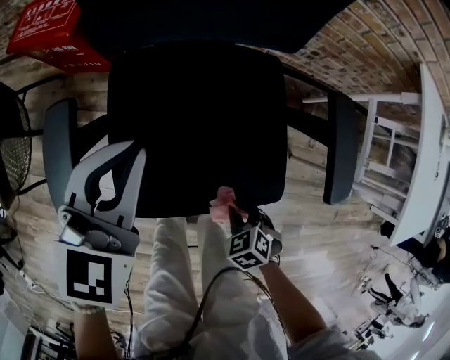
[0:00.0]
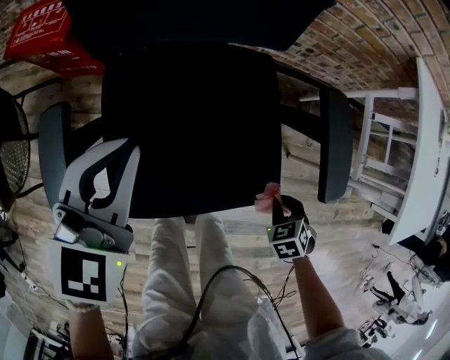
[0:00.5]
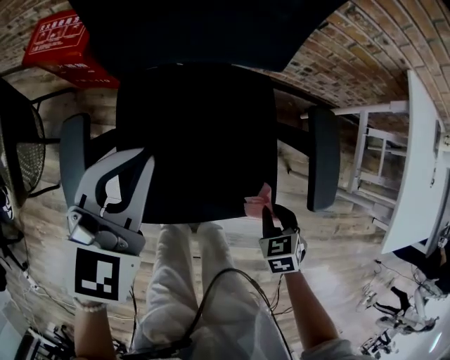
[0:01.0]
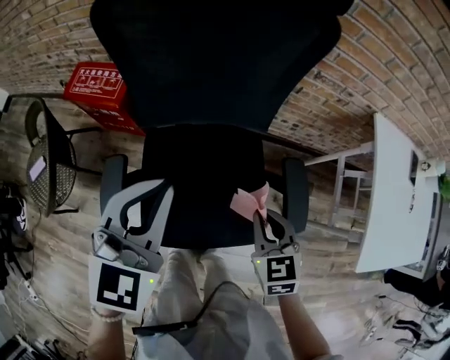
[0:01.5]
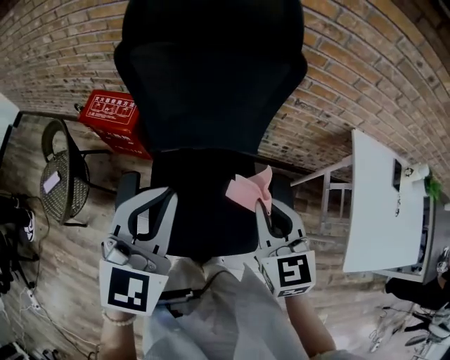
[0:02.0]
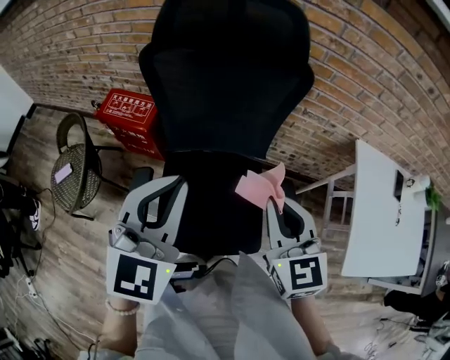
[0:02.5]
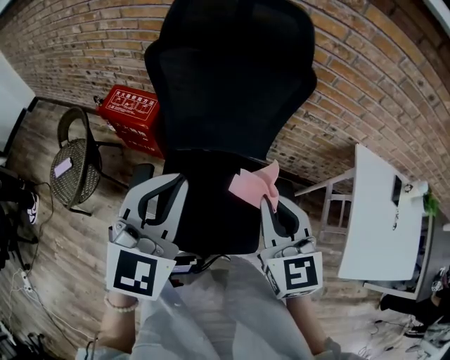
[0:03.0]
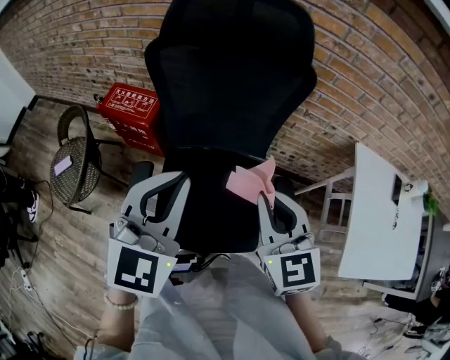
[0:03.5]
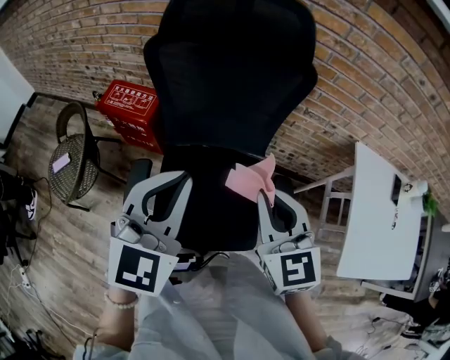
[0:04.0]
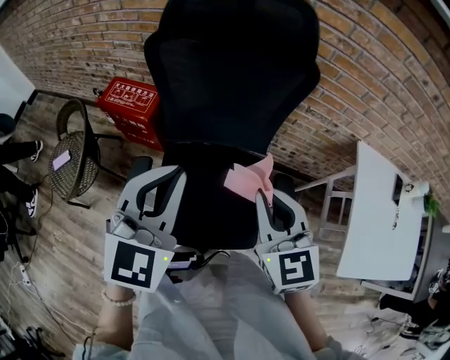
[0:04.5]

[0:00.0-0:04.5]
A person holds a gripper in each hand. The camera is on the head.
0:00.0 to 0:02.0: Both grippers travel together upward, approximately 40 cm. The right gripper tips its fingers upward by about 50 degrees.
0:02.0 to 0:04.5: The right gripper goes about 5 cm upward.

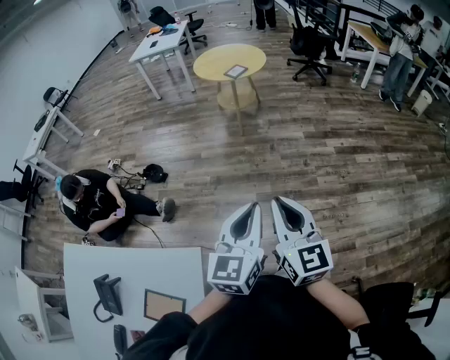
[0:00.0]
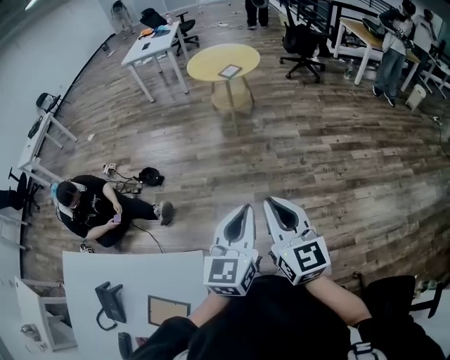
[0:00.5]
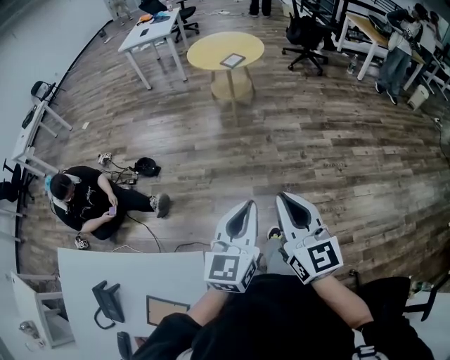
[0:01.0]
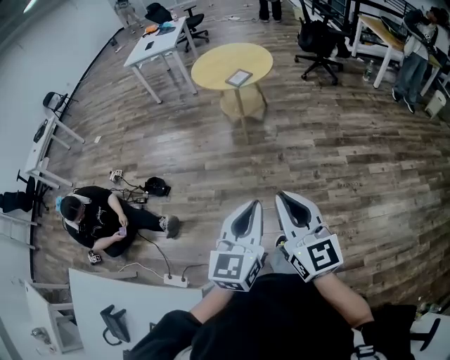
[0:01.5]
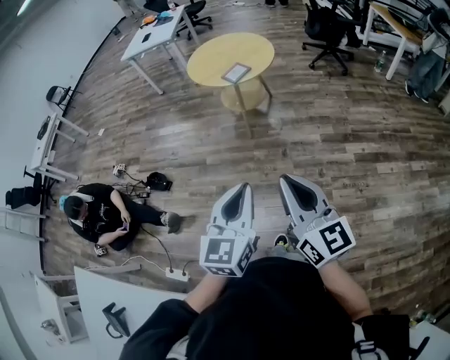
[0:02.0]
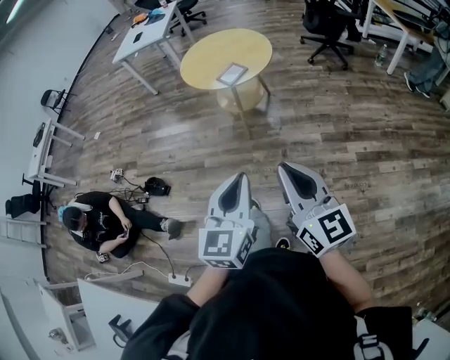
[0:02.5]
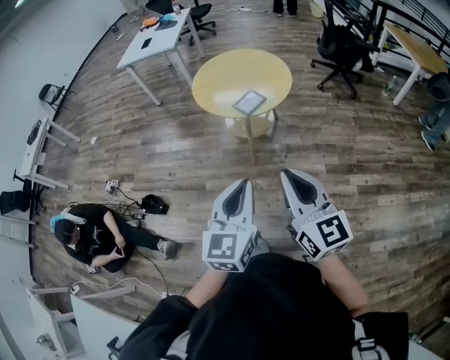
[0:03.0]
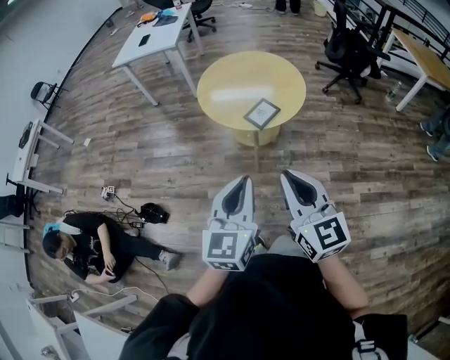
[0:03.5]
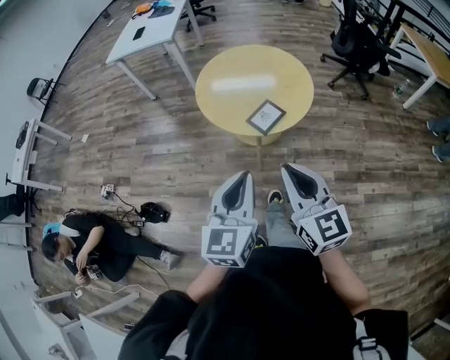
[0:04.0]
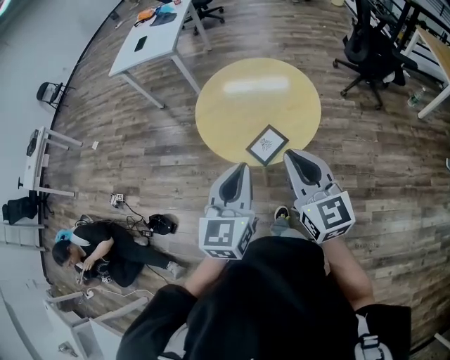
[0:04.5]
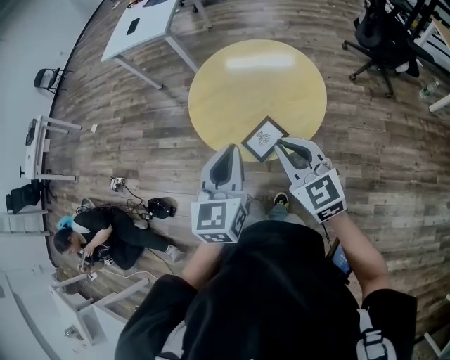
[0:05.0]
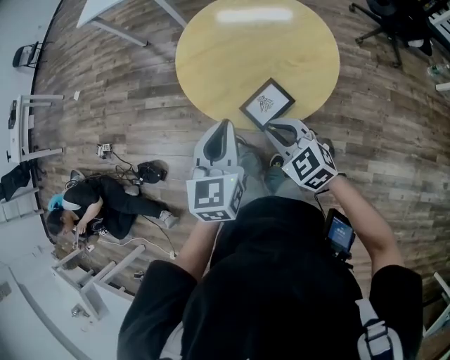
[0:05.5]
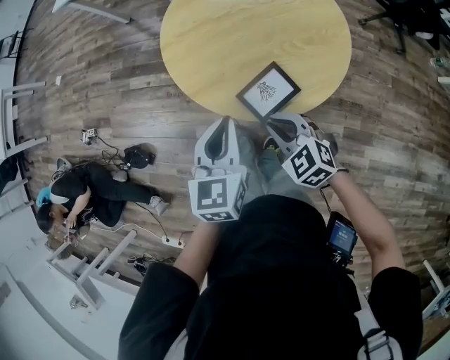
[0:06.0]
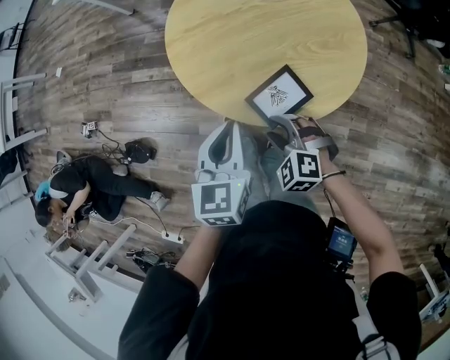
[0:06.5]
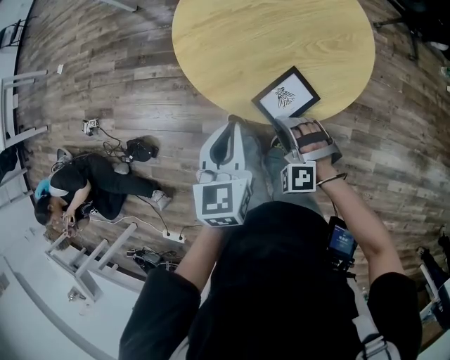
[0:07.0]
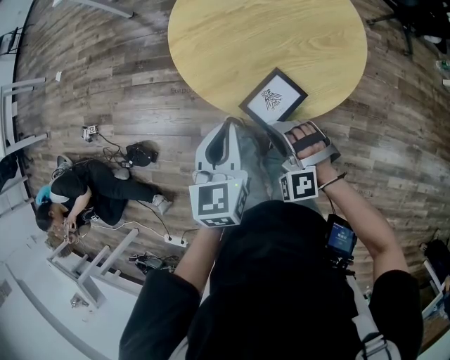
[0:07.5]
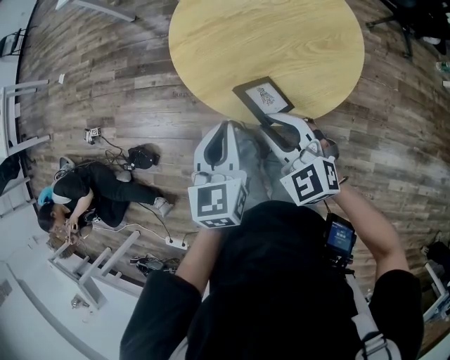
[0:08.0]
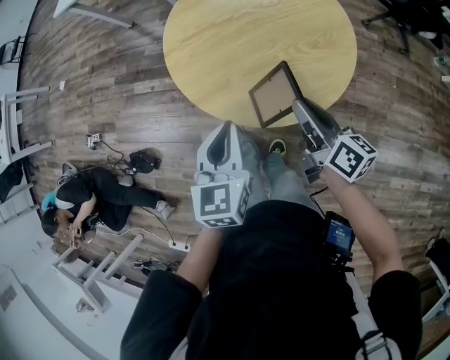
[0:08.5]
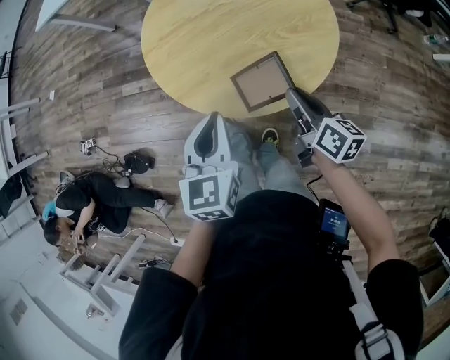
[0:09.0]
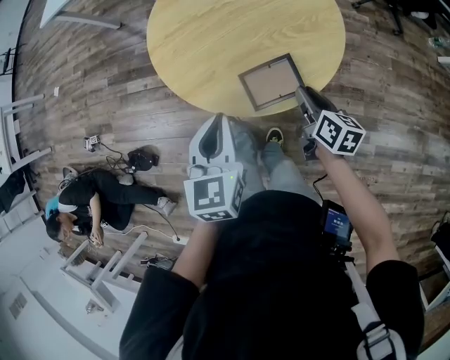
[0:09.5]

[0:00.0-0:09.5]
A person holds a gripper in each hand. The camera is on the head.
0:00.0 to 0:02.0: The grippers both shift forward by about 35 cm.
0:02.0 to 0:04.0: Both grippers are carried forward, approximately 50 cm.
0:04.0 to 0:05.5: The two grippers go approximately 30 cm forward and downward. The right gripper turns by approximately 40 degrees.
0:05.5 to 0:07.5: Both grippers travel together downward, roughly 10 cm. The right gripper rotates around the line of its fingers by some 40 degrees, counterclockwise from behind, and opens.
0:07.5 to 0:09.5: The right gripper shifts some 20 cm to the right, and twists some 110 degrees clockwise, seen from behind.

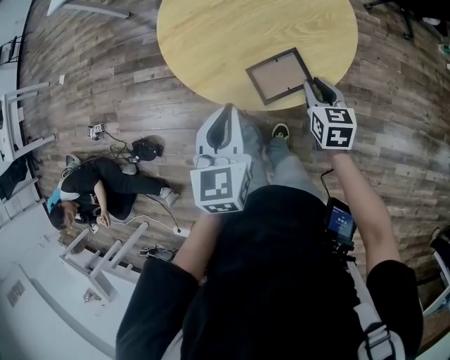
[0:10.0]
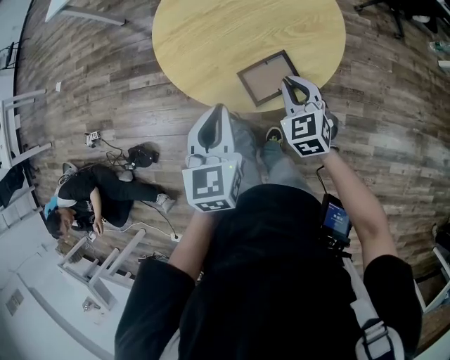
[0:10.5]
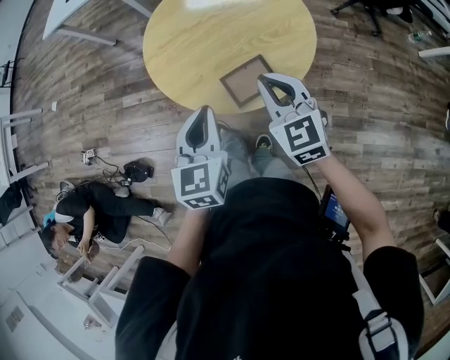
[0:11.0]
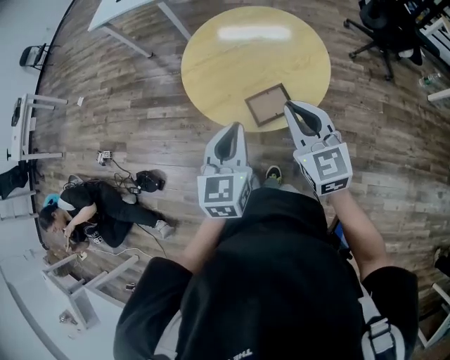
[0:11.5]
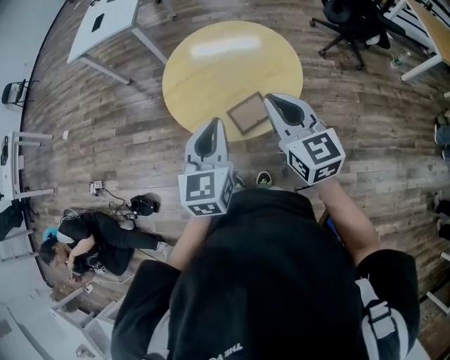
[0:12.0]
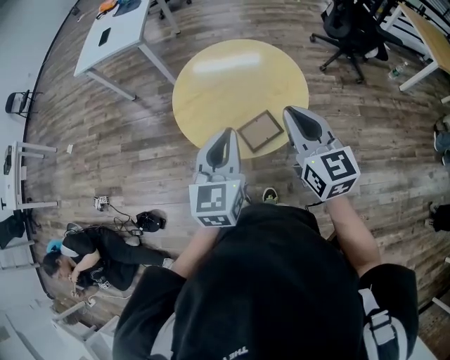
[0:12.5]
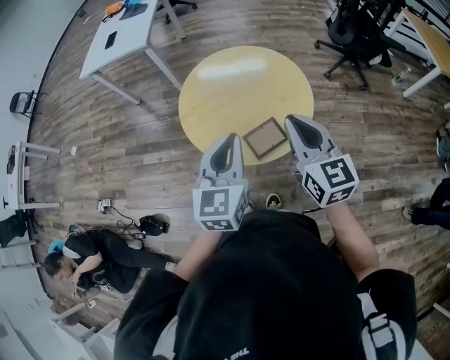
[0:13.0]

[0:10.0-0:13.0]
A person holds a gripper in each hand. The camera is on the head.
0:10.0 to 0:11.5: The right gripper moves upward, approximately 25 cm, and swivels approximately 40 degrees, while the left gripper goes roughly 10 cm upward and backward.
0:11.5 to 0:13.0: The grippers both shift upward by approximately 10 cm.

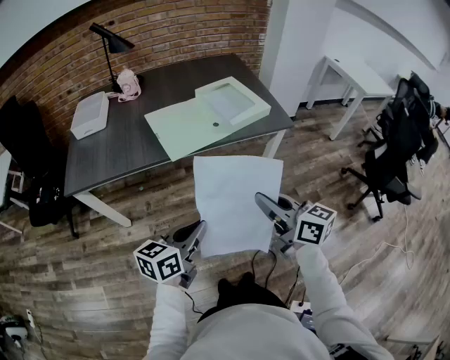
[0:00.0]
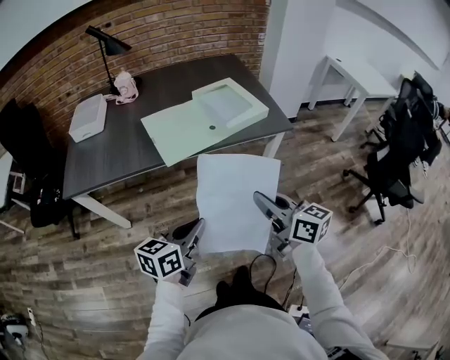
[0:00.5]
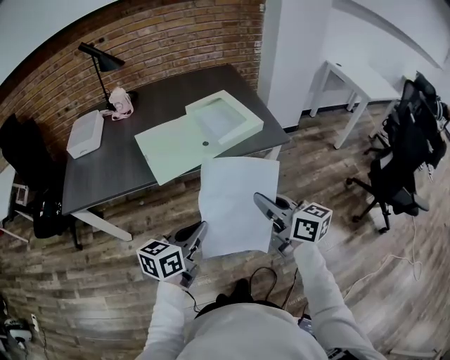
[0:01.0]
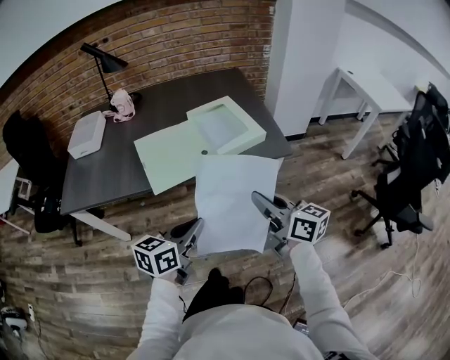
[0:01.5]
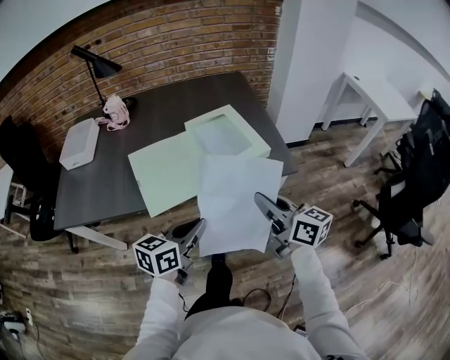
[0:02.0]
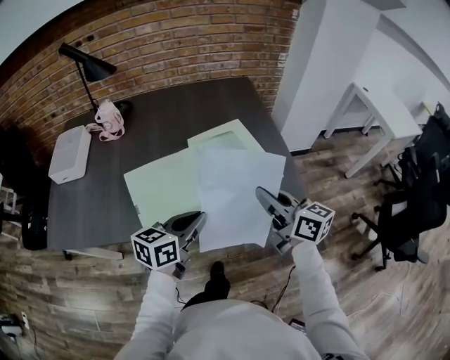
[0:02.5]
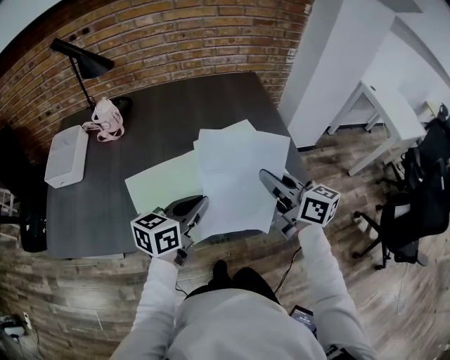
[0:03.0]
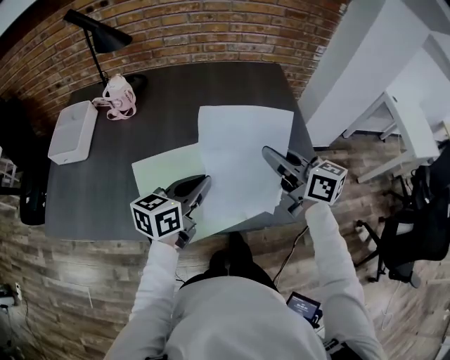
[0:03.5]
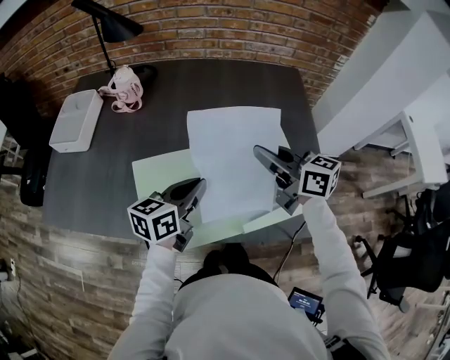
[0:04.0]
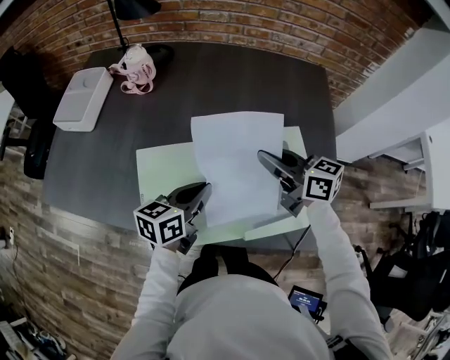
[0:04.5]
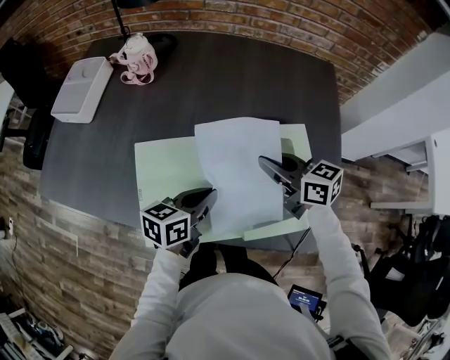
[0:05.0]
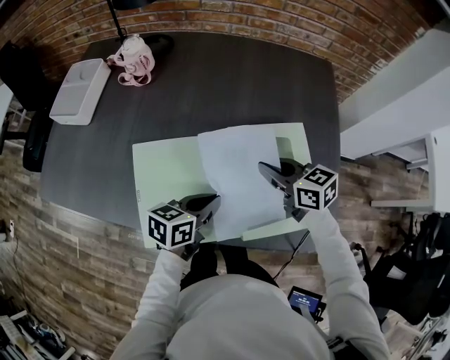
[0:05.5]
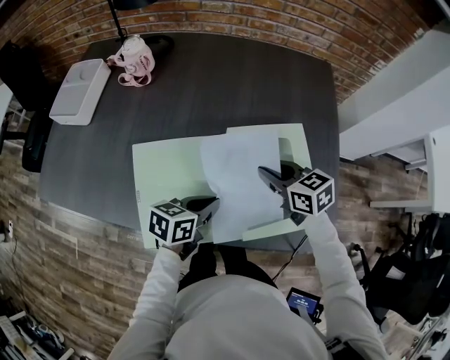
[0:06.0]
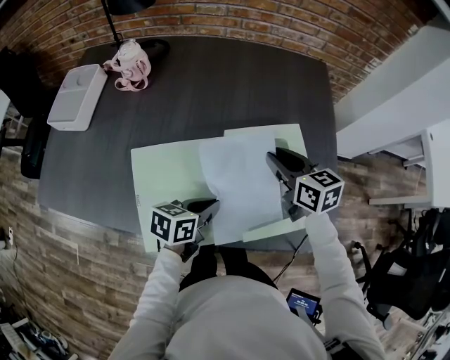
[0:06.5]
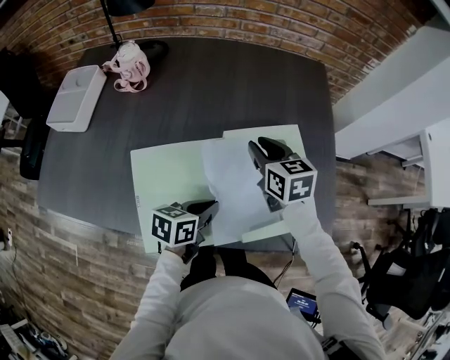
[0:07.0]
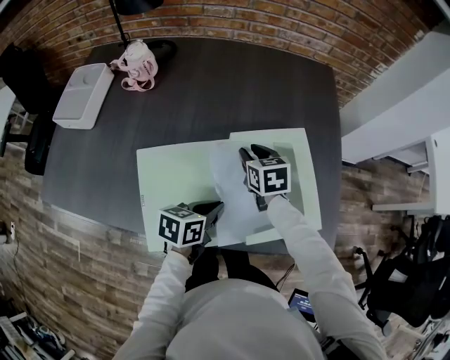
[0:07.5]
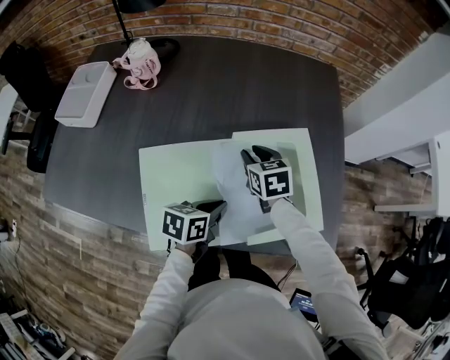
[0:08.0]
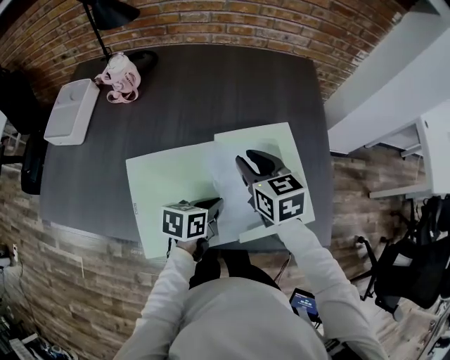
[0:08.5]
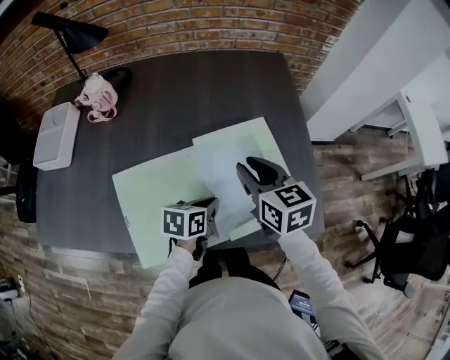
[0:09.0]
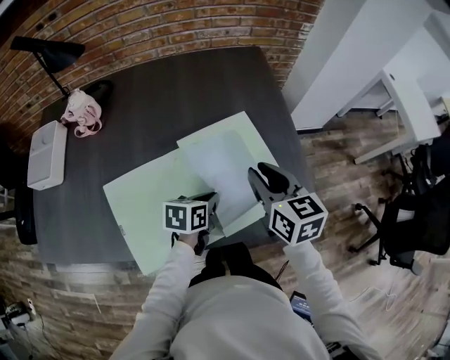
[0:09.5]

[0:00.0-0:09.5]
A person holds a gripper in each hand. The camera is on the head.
0:00.0 to 0:02.0: Both grippers travel together forward and to the right, roughly 25 cm.
0:02.0 to 0:04.0: The two grippers go approximately 35 cm forward. The right gripper changes its angle by approximately 20 degrees.
0:04.0 to 0:05.5: The grippers both shift downward by about 10 cm. The right gripper swivels some 20 degrees.
0:05.5 to 0:07.5: The right gripper heads forward and downward, covering roughly 10 cm, changes its angle by approximately 30 degrees, and opens its fingers.
0:07.5 to 0:09.5: The right gripper moves to the right, upward and backward, approximately 20 cm, and changes its angle by approximately 20 degrees, while the left gripper heads to the right, covering roughly 5 cm.
